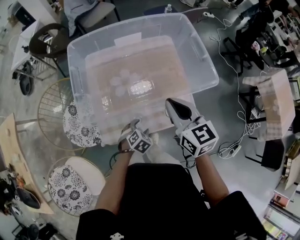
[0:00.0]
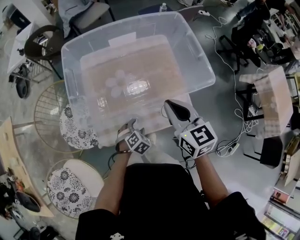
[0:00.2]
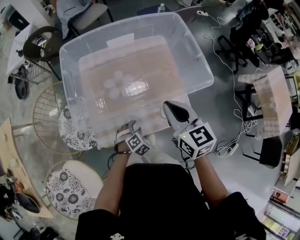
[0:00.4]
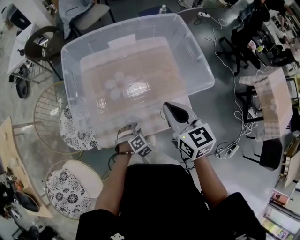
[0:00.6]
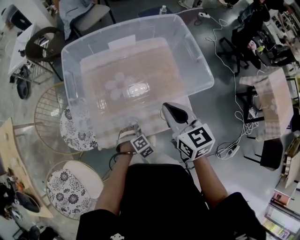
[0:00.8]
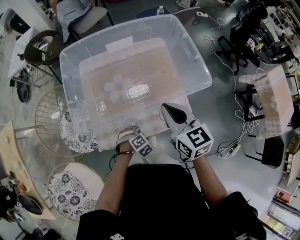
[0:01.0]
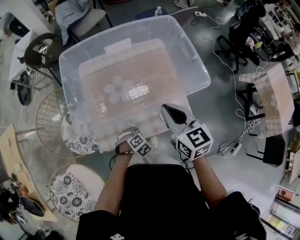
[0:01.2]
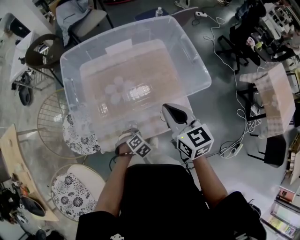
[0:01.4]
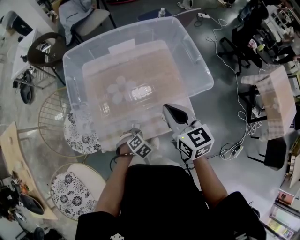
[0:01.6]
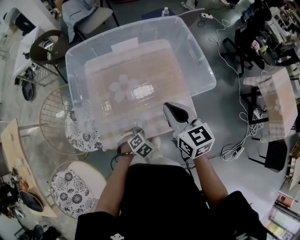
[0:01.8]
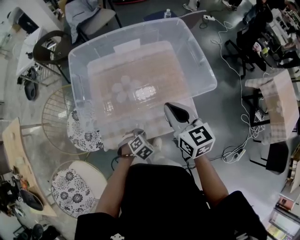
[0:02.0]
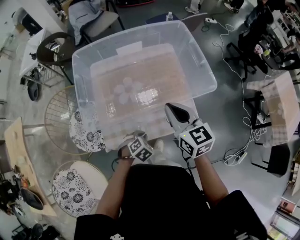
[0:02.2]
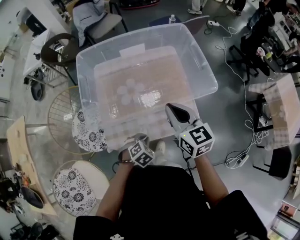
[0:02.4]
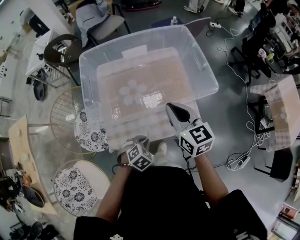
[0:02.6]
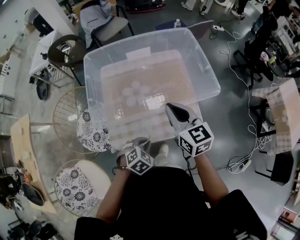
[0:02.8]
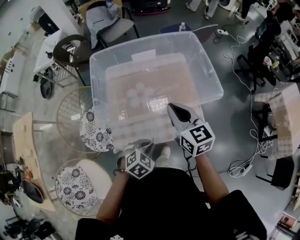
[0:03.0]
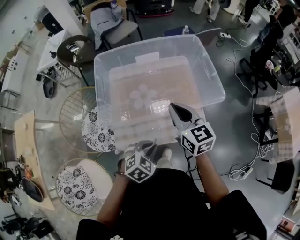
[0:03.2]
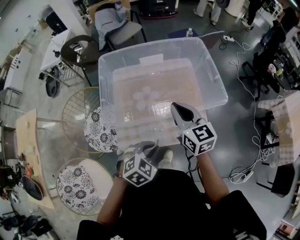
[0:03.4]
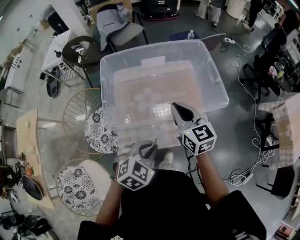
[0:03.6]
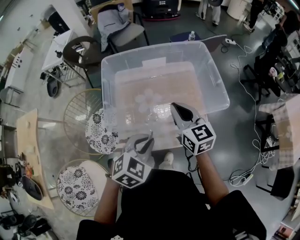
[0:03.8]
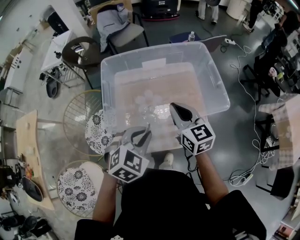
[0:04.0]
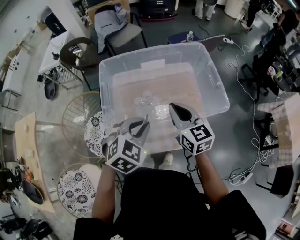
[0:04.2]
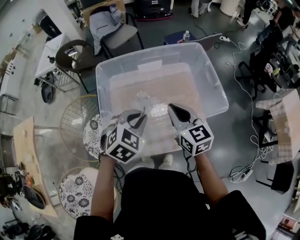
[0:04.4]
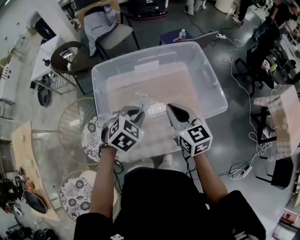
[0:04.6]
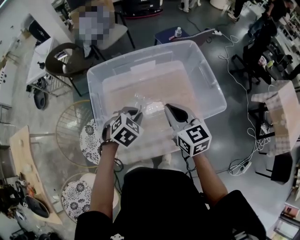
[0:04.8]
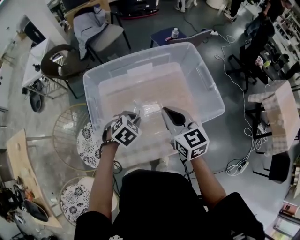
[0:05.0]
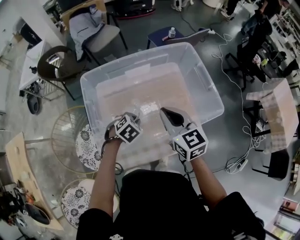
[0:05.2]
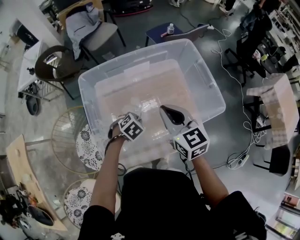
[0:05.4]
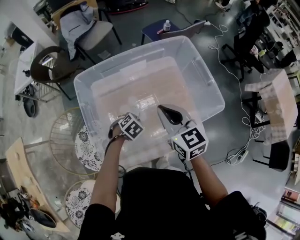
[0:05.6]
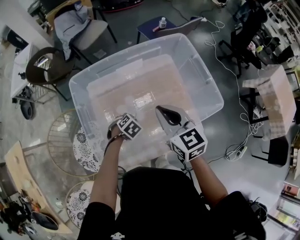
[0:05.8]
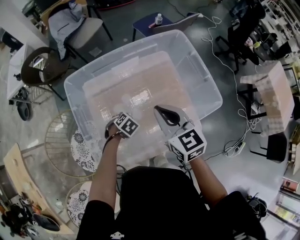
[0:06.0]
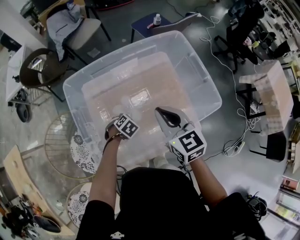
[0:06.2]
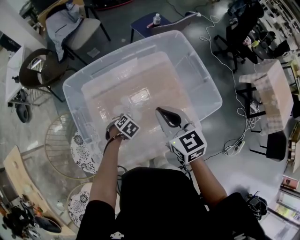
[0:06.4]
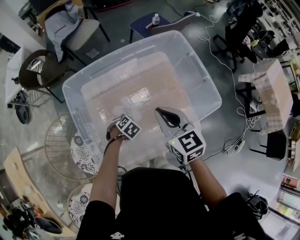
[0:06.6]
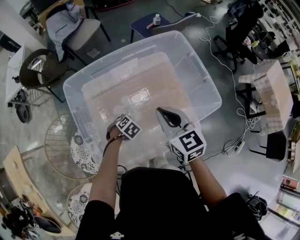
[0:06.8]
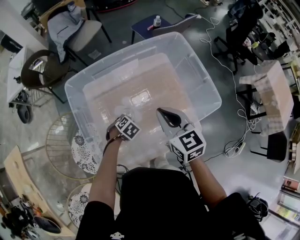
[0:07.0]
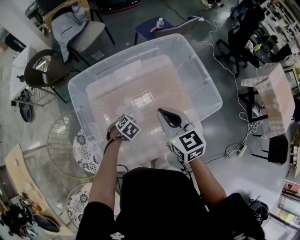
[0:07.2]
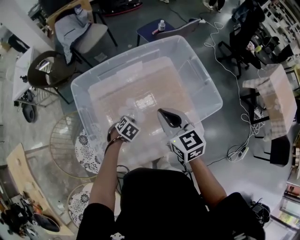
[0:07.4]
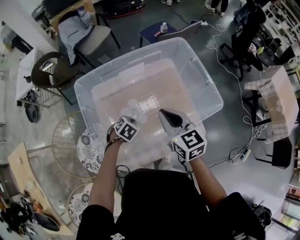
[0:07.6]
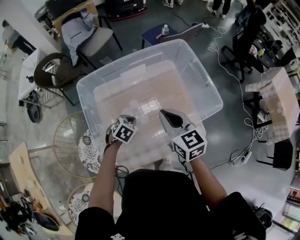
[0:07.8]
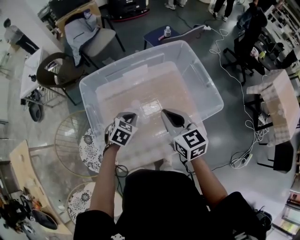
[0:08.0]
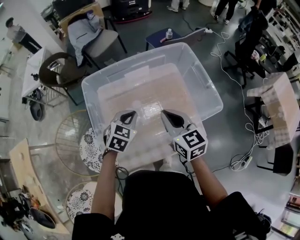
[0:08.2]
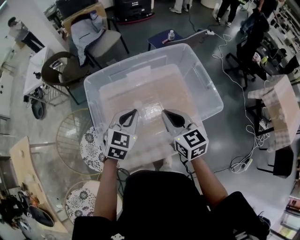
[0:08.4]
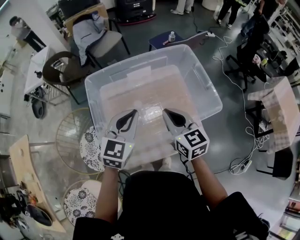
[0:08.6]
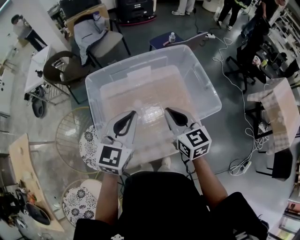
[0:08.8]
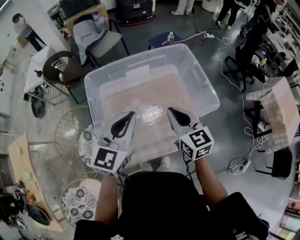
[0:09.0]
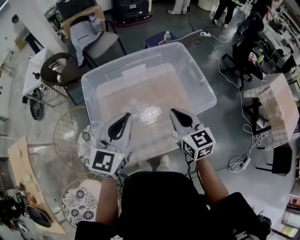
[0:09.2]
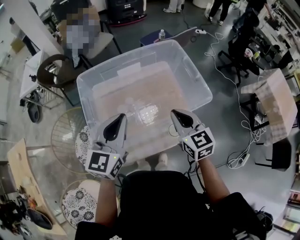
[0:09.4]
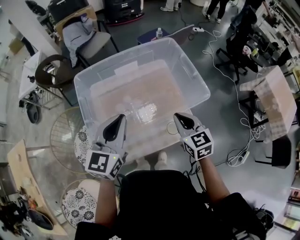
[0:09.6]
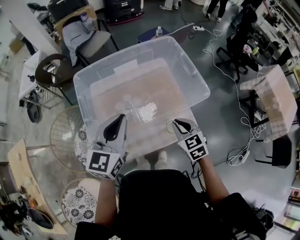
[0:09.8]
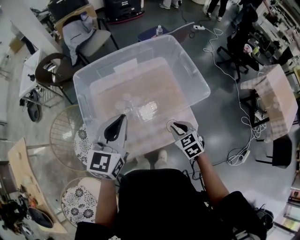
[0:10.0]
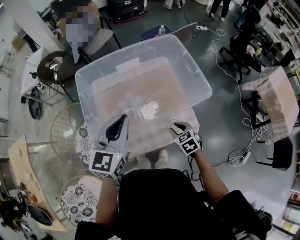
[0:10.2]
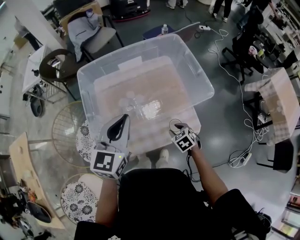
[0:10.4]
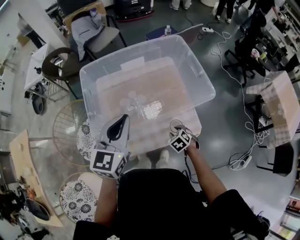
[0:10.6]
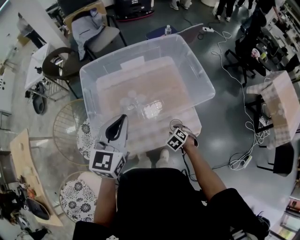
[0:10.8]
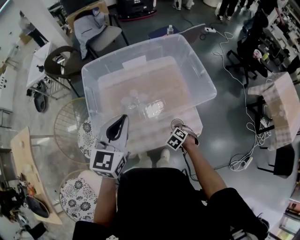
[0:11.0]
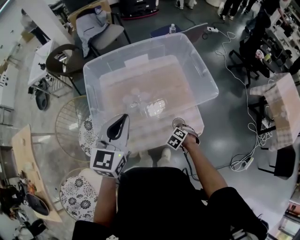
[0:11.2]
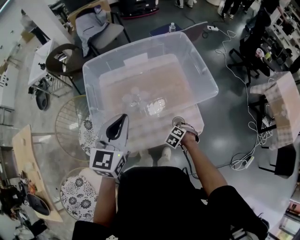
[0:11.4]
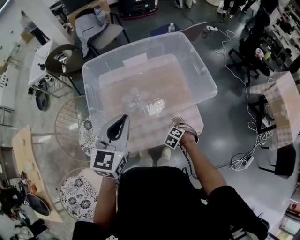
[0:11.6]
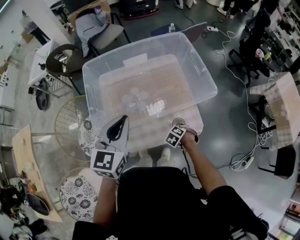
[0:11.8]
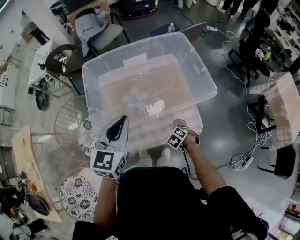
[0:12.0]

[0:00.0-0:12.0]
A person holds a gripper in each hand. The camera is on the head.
0:00.0 to 0:01.6: The left gripper closes.
0:01.6 to 0:03.0: The left gripper heads upward, covering approximately 15 cm.
0:03.0 to 0:04.4: The left gripper is displaced forward, upward and to the left by roughly 25 cm. Meanwhile the right gripper is displaced forward by some 5 cm.
0:04.4 to 0:06.0: The right gripper shifts by roughly 5 cm. The left gripper is displaced downward by roughly 30 cm, and changes its angle by roughly 30 degrees.
0:06.0 to 0:07.6: The left gripper shifts roughly 5 cm upward.
0:07.6 to 0:09.0: The right gripper ends up about 5 cm from where it was; the left gripper goes about 35 cm upward, and angles its fingers upward, by about 60 degrees.
0:09.0 to 0:10.4: The right gripper is displaced downward by some 25 cm, tilts its fingers some 40 degrees downward, and opens. The left gripper shifts by about 5 cm.
0:10.4 to 0:12.0: The right gripper goes roughly 10 cm downward, turns by roughly 30 degrees, and closes up.

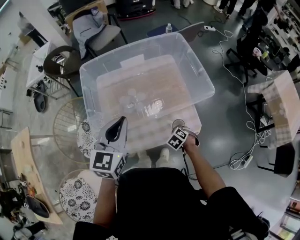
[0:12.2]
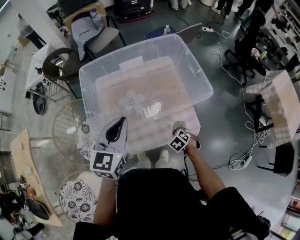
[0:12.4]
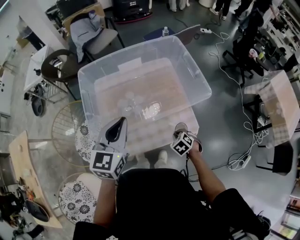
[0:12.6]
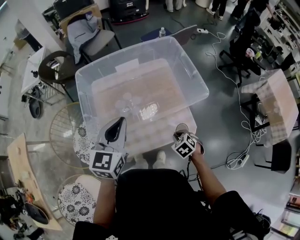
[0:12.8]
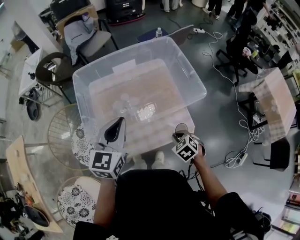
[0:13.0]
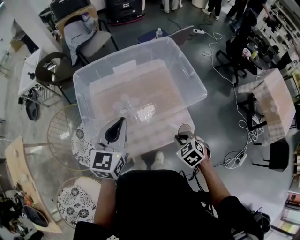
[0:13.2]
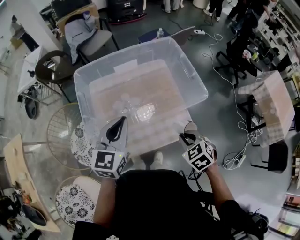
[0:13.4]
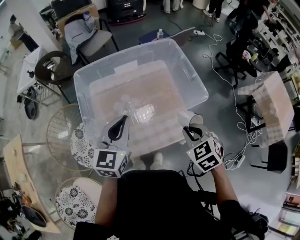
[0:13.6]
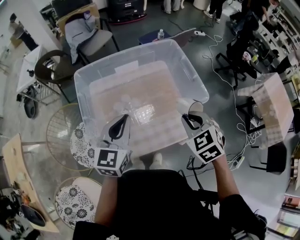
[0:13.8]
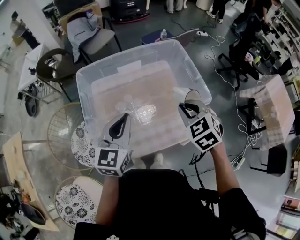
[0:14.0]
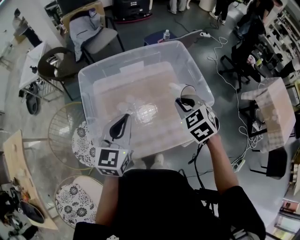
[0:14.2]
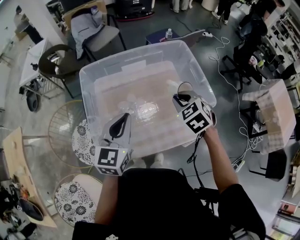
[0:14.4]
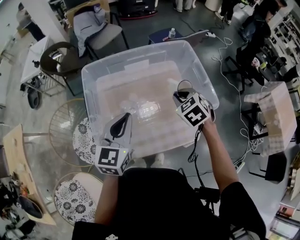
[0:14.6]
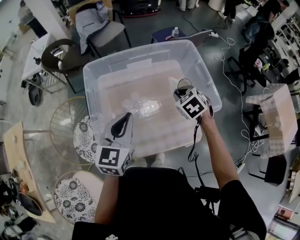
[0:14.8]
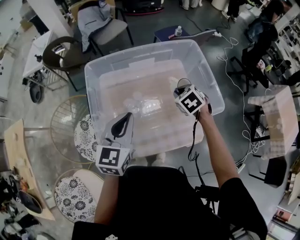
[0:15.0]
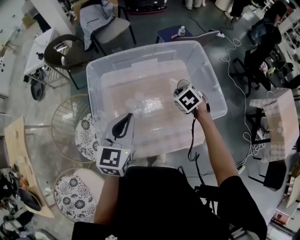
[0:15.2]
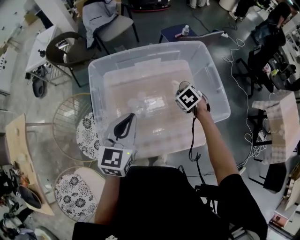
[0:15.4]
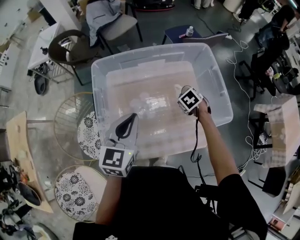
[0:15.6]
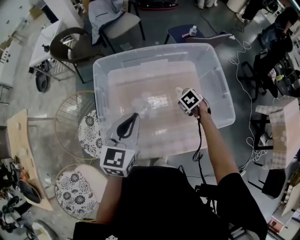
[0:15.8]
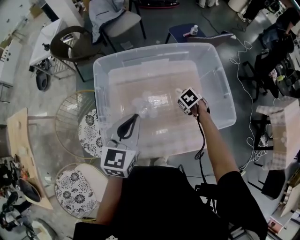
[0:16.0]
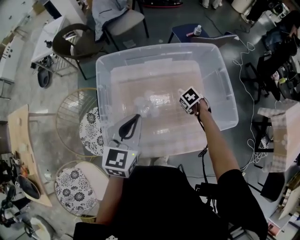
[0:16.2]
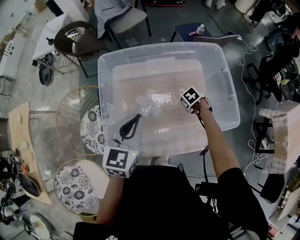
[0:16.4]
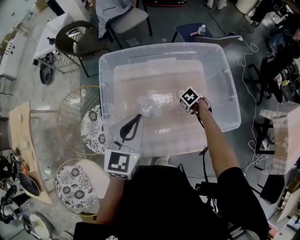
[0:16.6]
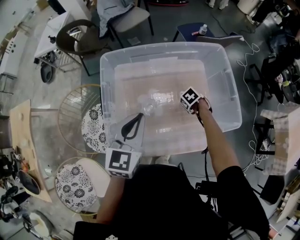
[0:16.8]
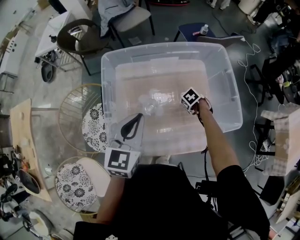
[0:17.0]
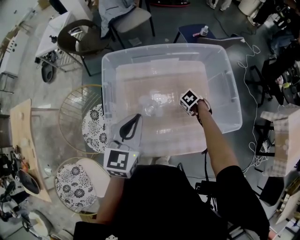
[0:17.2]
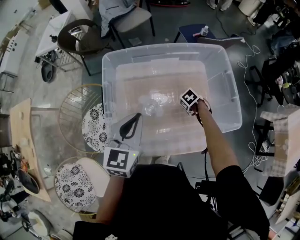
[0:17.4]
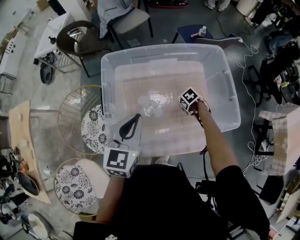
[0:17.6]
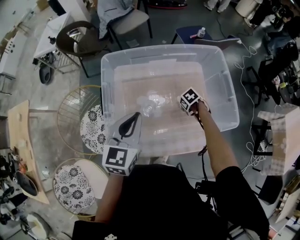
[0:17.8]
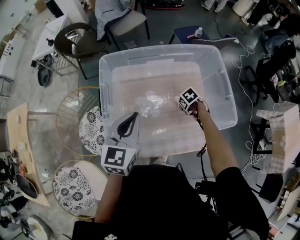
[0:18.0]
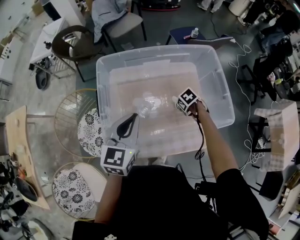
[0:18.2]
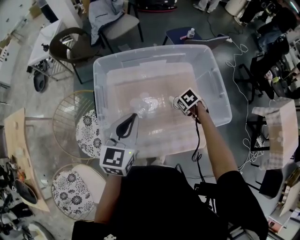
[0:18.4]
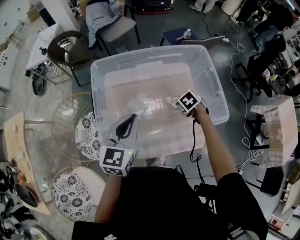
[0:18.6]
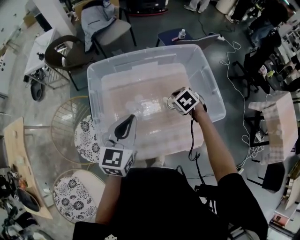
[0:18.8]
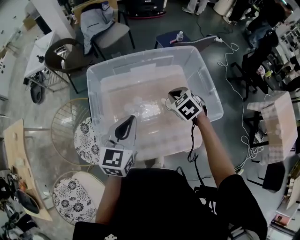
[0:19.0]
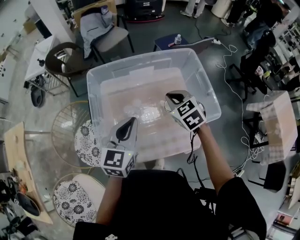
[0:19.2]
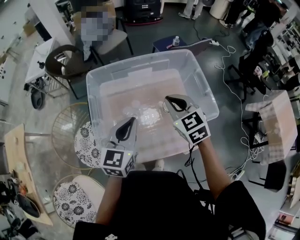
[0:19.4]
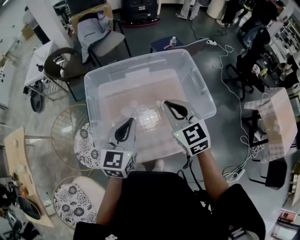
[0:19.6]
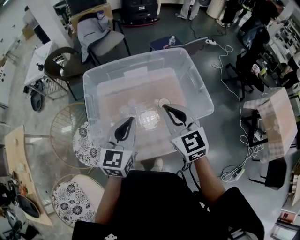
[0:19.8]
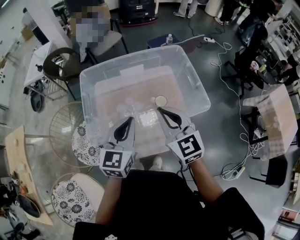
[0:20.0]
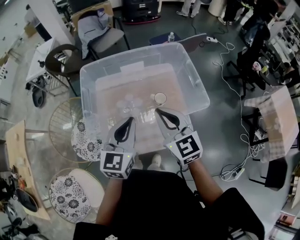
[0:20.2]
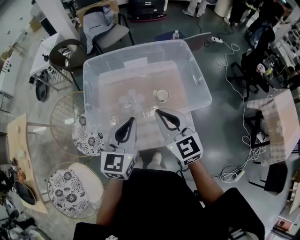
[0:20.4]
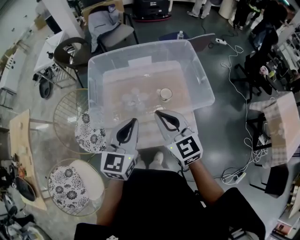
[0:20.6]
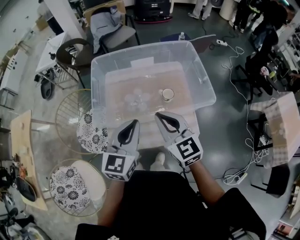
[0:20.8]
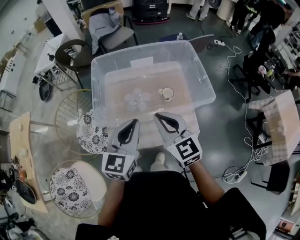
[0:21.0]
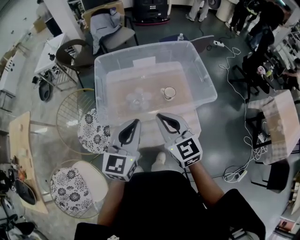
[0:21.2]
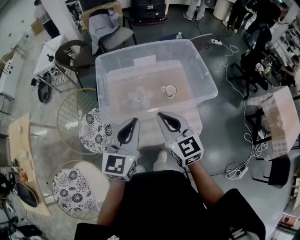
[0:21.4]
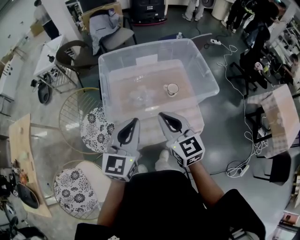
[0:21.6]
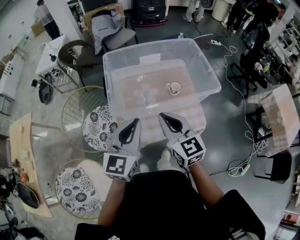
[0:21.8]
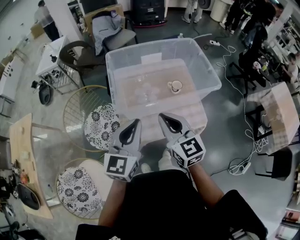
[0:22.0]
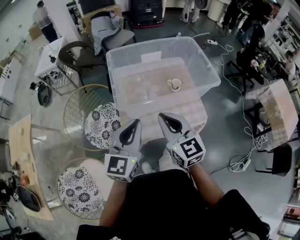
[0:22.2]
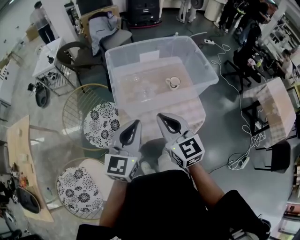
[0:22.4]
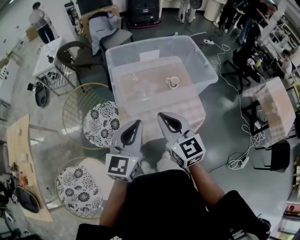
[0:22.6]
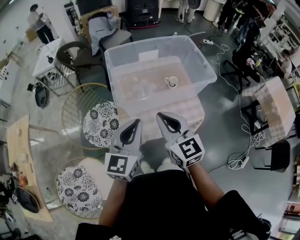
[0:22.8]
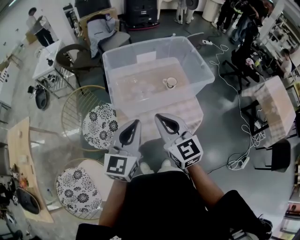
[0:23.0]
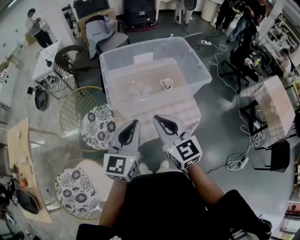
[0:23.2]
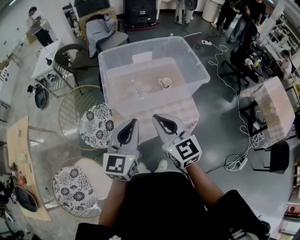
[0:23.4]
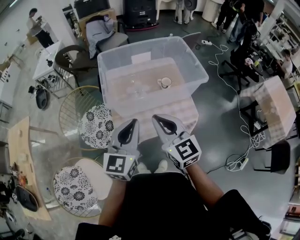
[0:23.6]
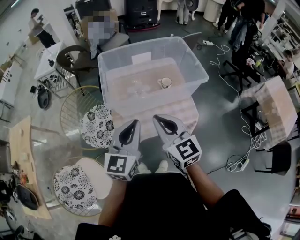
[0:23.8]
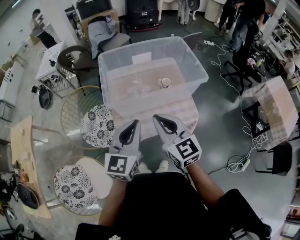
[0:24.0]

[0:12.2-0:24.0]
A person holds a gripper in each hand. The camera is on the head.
0:12.2 to 0:13.6: The right gripper is displaced upward by about 30 cm, and changes its angle by about 30 degrees.
0:13.6 to 0:15.2: The left gripper changes place by approximately 5 cm; the right gripper goes roughly 25 cm forward and downward.
0:15.2 to 0:16.6: The right gripper is displaced downward by about 15 cm, and swivels about 20 degrees.
0:16.6 to 0:18.2: There are only small adjustments of the grippers.
0:18.2 to 0:19.6: The left gripper moves roughly 5 cm. Meanwhile the right gripper goes some 35 cm upward, tilts its fingers about 60 degrees upward, and closes.
0:19.6 to 0:21.0: Both grippers move backward, roughly 10 cm.
0:21.0 to 0:22.6: The grippers both shift to the left and backward by roughly 15 cm.
0:22.6 to 0:24.0: Both grippers travel together to the right, approximately 5 cm.
